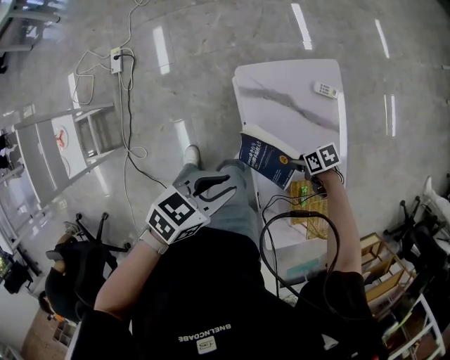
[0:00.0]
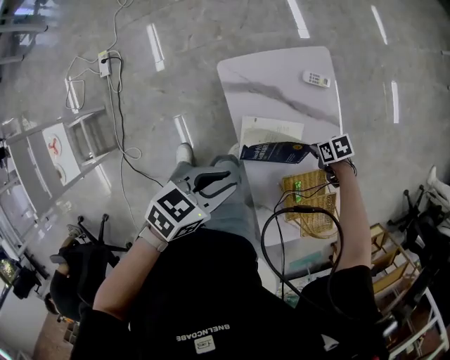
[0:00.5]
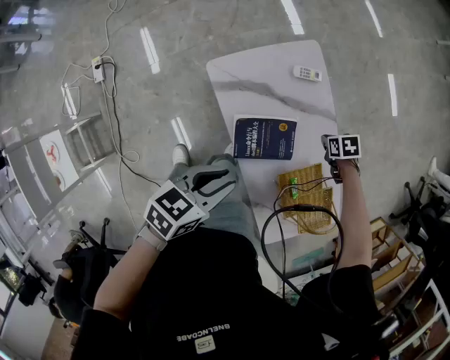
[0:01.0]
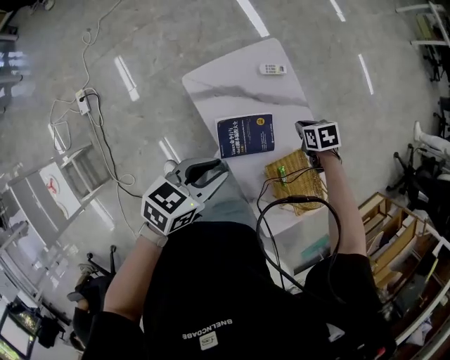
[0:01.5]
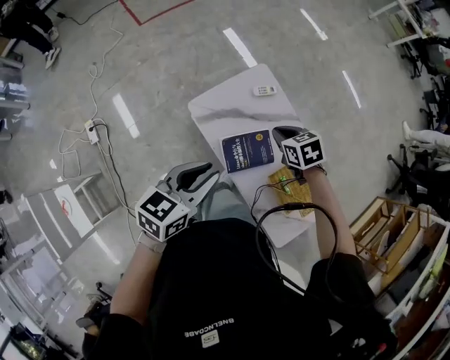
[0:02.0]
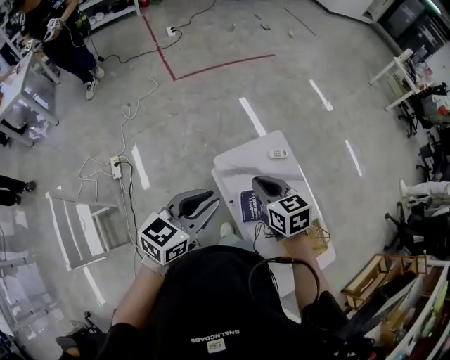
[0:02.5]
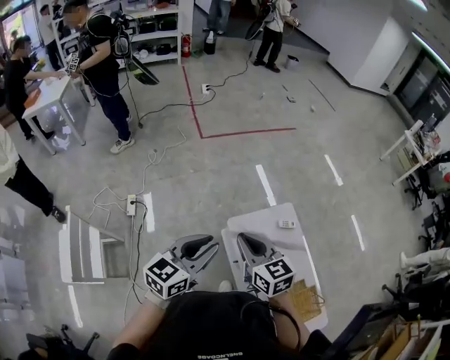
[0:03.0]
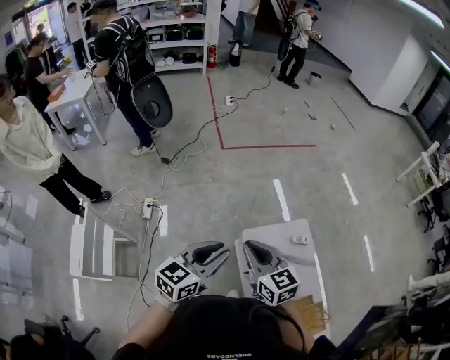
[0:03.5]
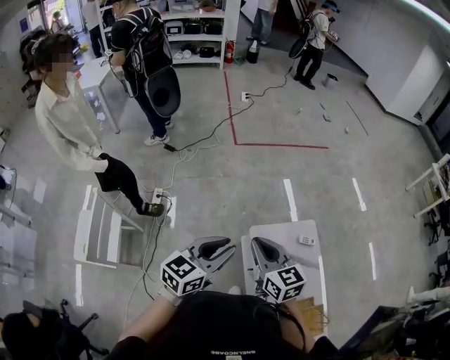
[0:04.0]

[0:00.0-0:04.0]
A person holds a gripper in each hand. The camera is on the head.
0:00.0 to 0:02.0: The left gripper is displaced upward by about 15 cm. Meanwhile the right gripper shifts some 25 cm upward, turns by about 40 degrees, and closes its fingers.
0:02.0 to 0:04.0: The left gripper is displaced to the left and upward by approximately 20 cm, and changes its angle by some 30 degrees. Meanwhile the right gripper goes about 40 cm to the left and upward, and tips its fingers upward by roughly 40 degrees.

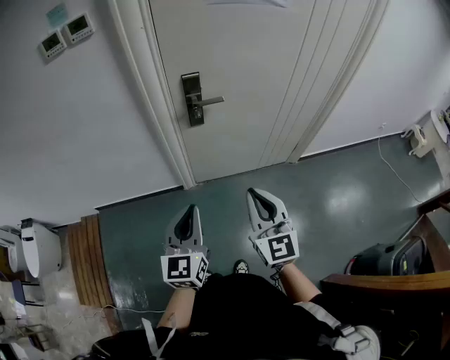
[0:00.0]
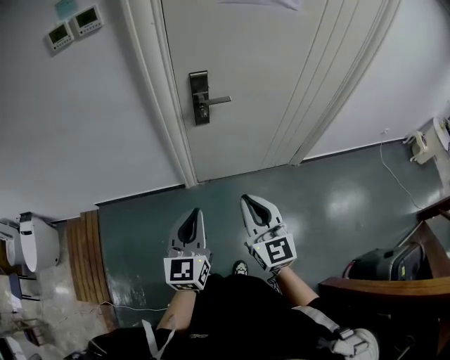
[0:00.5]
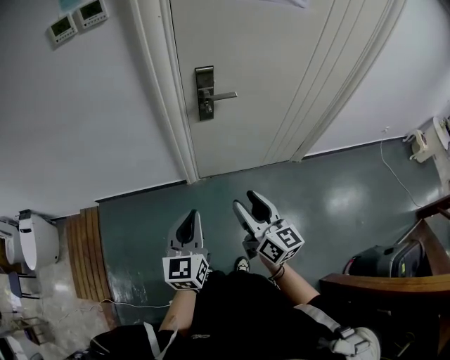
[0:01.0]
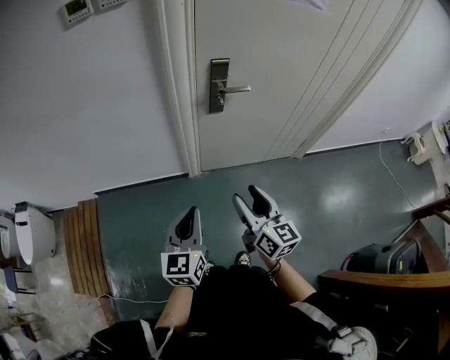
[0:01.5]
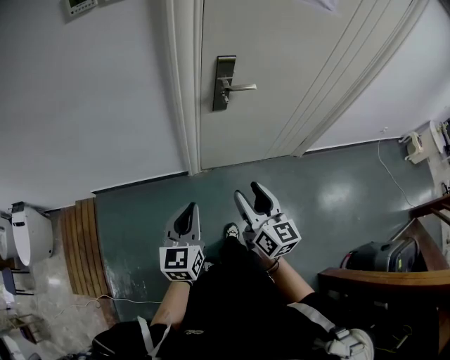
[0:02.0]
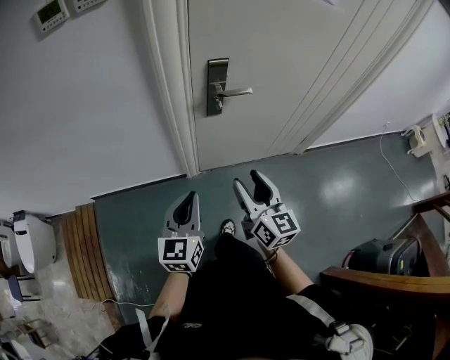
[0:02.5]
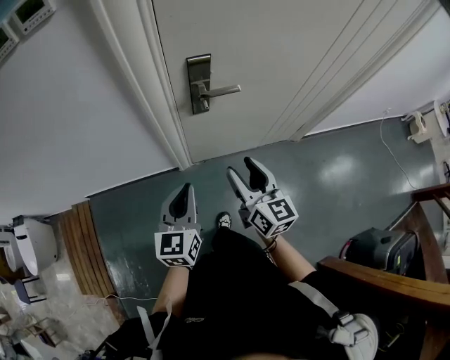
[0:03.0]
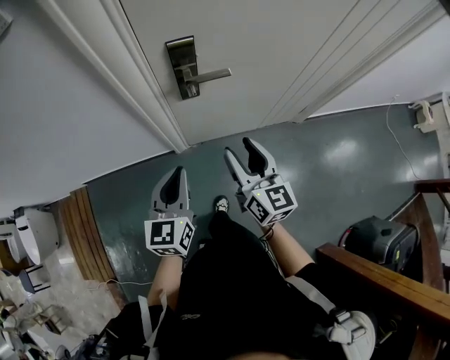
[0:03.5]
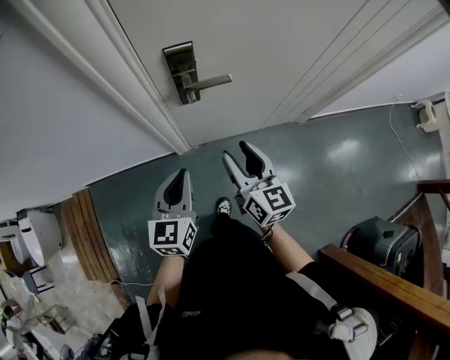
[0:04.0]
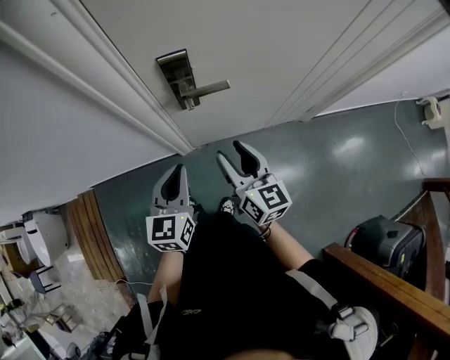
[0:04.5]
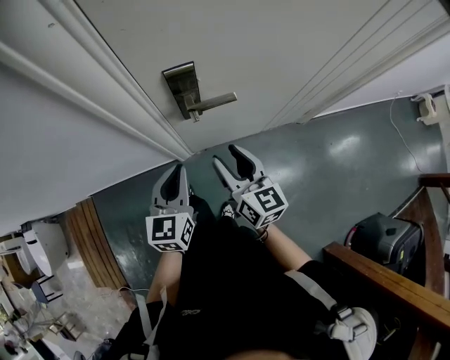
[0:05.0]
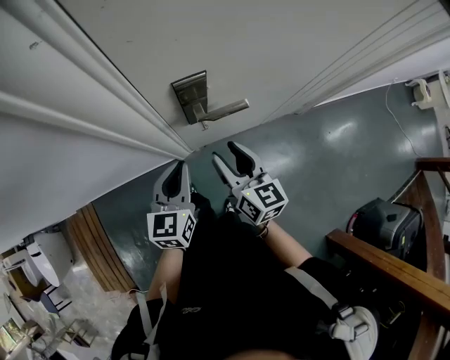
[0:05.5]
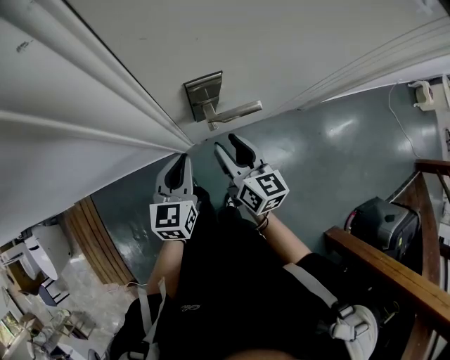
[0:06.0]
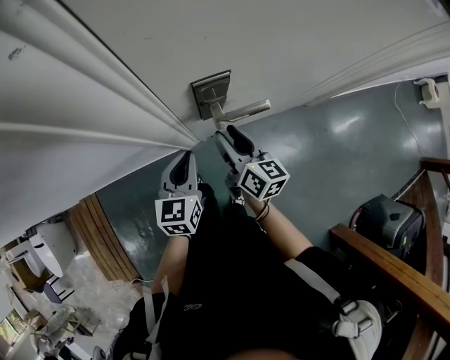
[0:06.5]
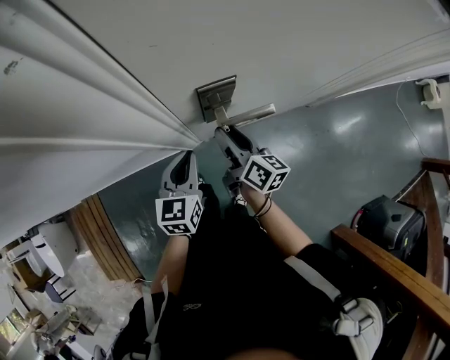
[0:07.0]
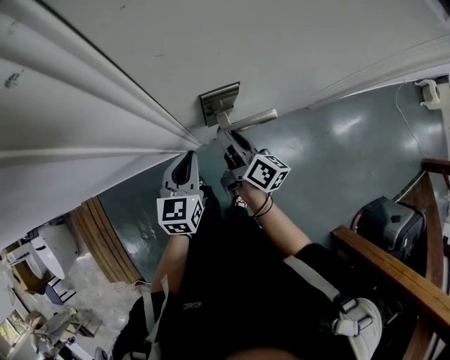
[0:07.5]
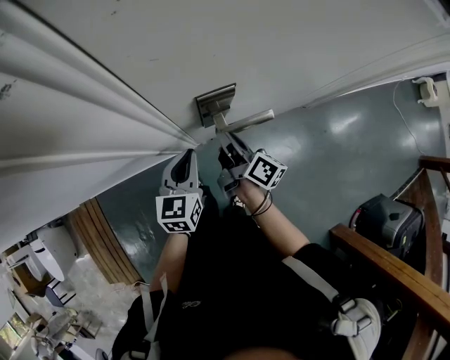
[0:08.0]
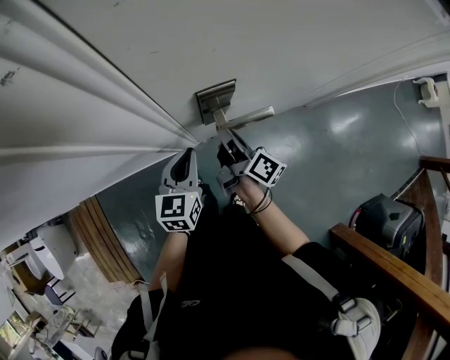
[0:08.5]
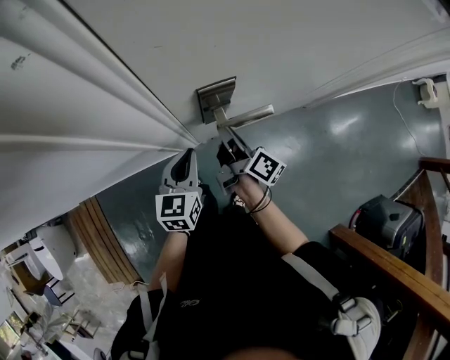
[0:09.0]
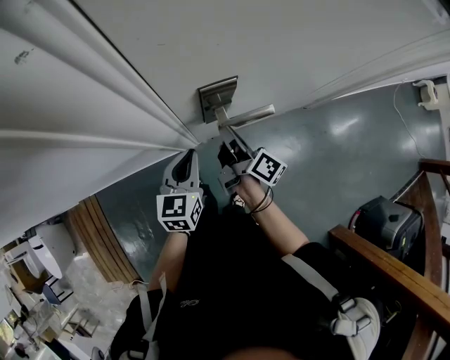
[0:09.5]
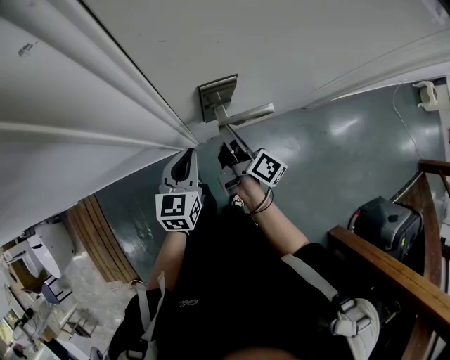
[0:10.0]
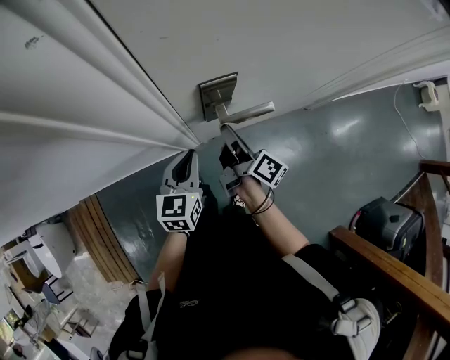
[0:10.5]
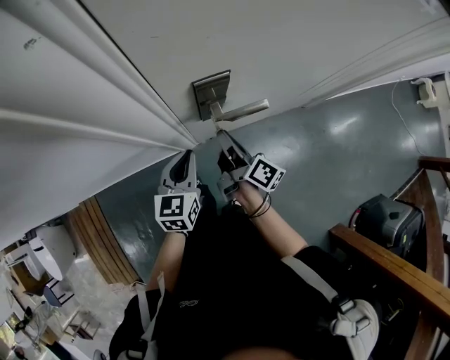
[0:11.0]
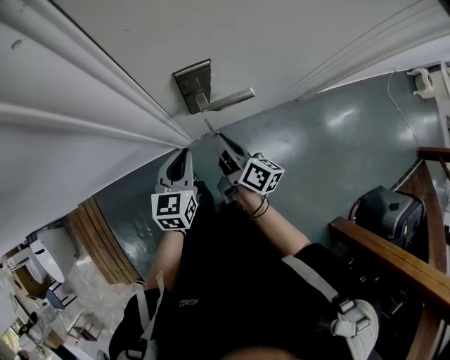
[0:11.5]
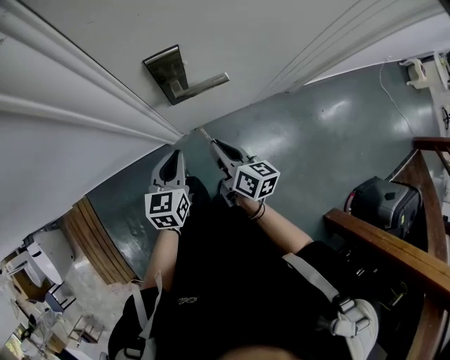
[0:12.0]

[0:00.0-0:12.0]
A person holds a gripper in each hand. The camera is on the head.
0:00.0 to 0:02.0: Both grippers move to the left and downward, roughly 15 cm. The right gripper changes its angle by some 30 degrees, and opens its fingers.
0:02.0 to 0:04.0: The grippers both shift forward and to the right by roughly 25 cm.
0:04.0 to 0:06.0: The left gripper shifts some 15 cm forward, while the right gripper is displaced forward and to the left by roughly 15 cm.
0:06.0 to 0:08.0: The right gripper is displaced forward by roughly 5 cm, rolls clockwise, seen from behind, by some 40 degrees, and closes.
0:08.0 to 0:10.0: The grippers move only a little.
0:10.0 to 0:12.0: The left gripper is displaced backward by some 10 cm. The right gripper travels backward by some 15 cm, and changes its angle by about 30 degrees.

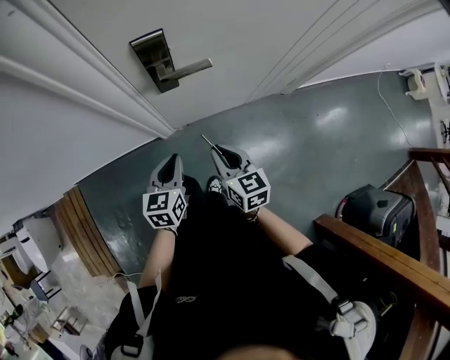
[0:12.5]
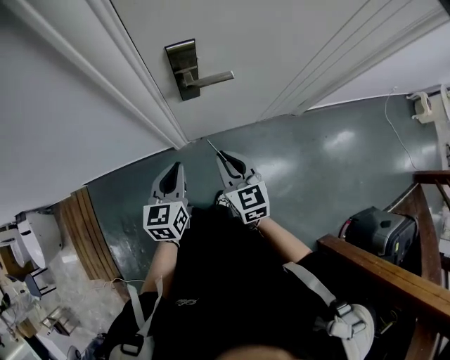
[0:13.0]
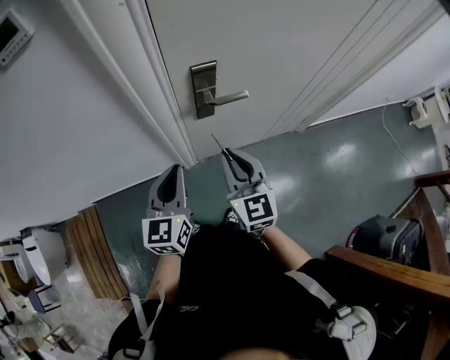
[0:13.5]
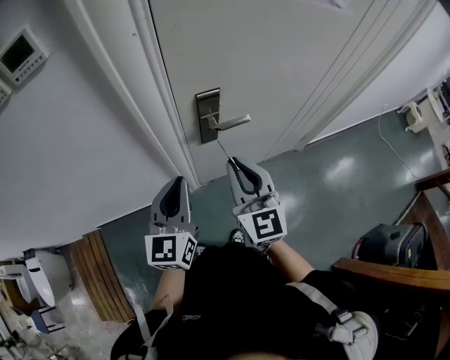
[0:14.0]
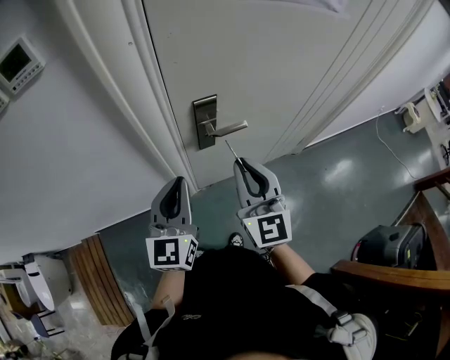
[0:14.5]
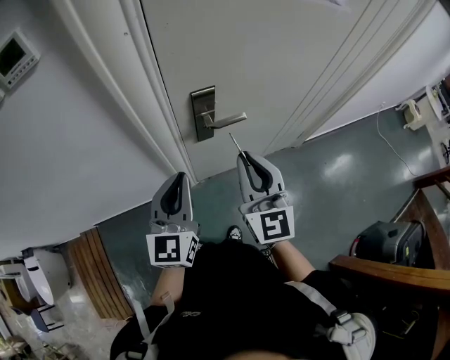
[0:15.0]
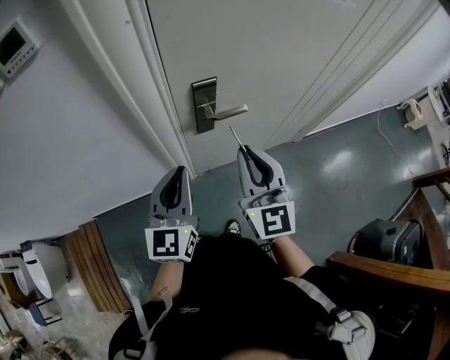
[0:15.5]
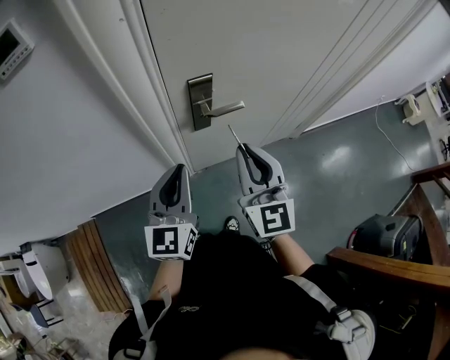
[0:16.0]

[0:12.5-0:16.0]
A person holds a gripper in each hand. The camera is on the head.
0:12.5 to 0:14.5: The grippers both shift upward by roughly 25 cm. The left gripper swivels approximately 30 degrees, while the right gripper turns by about 40 degrees.
0:14.5 to 0:16.0: There are only small adjustments of the grippers.

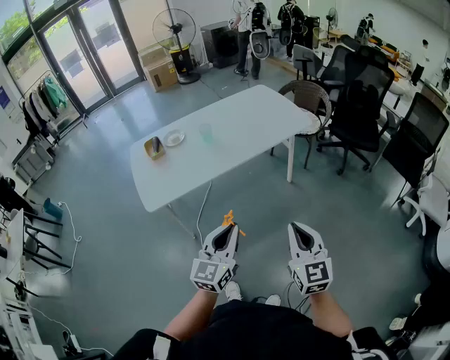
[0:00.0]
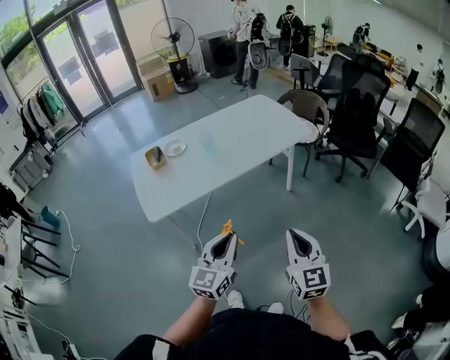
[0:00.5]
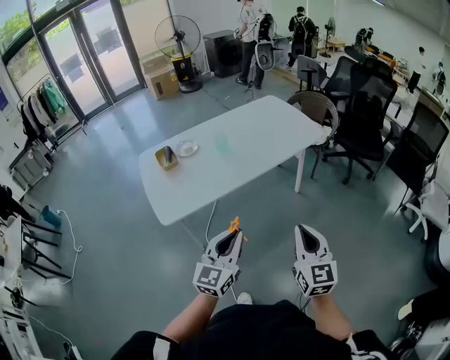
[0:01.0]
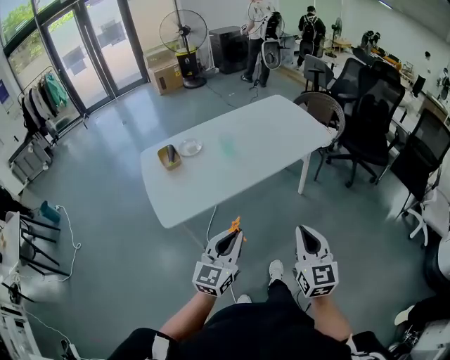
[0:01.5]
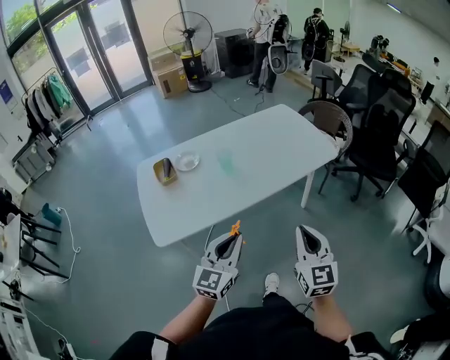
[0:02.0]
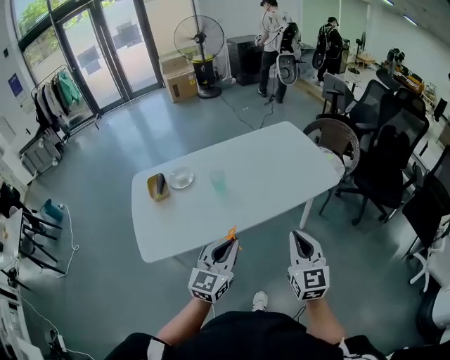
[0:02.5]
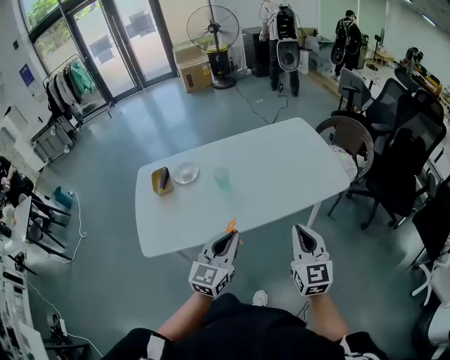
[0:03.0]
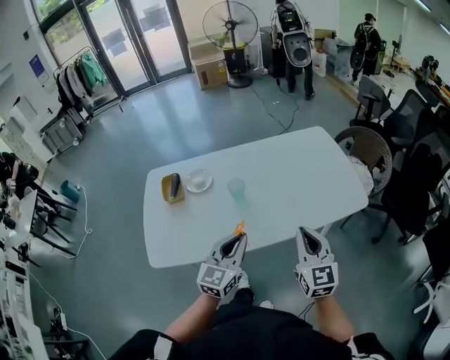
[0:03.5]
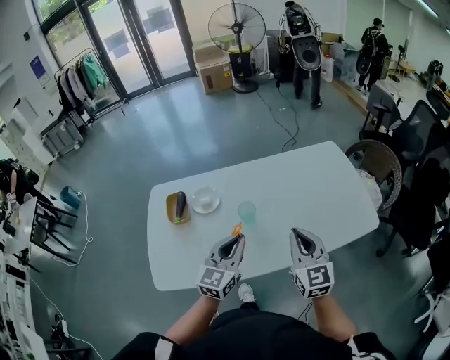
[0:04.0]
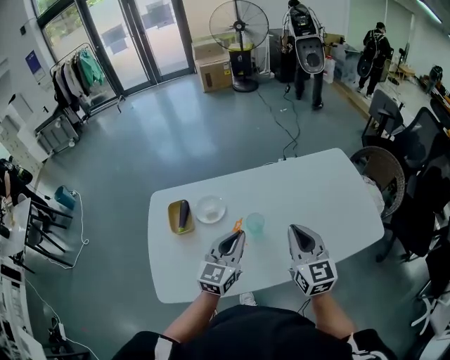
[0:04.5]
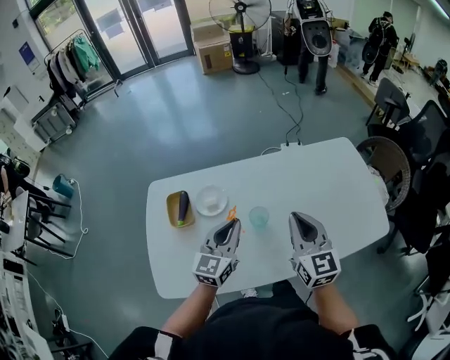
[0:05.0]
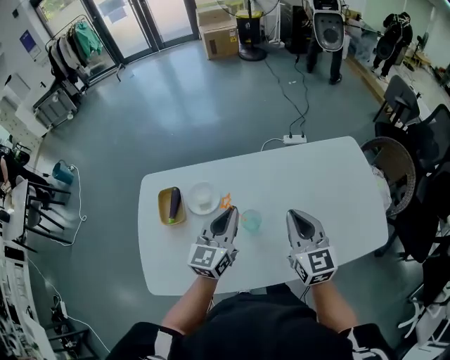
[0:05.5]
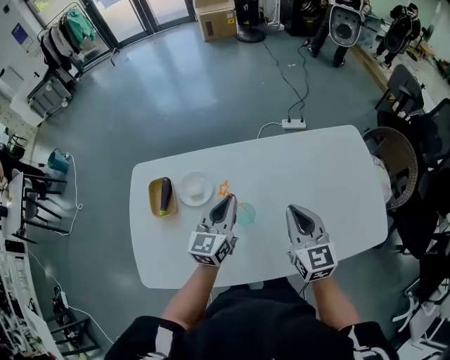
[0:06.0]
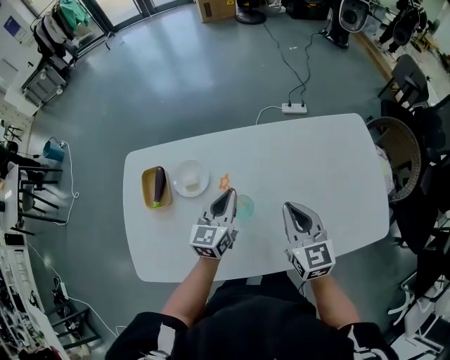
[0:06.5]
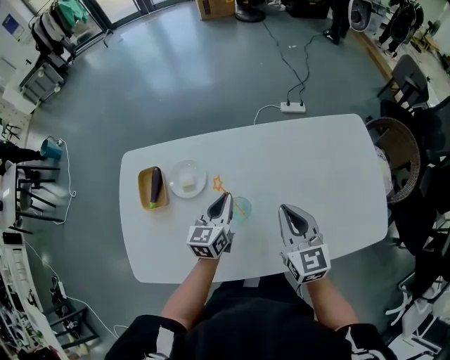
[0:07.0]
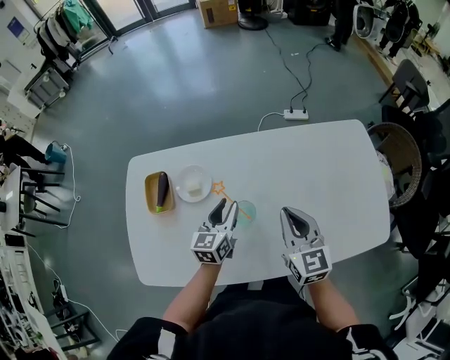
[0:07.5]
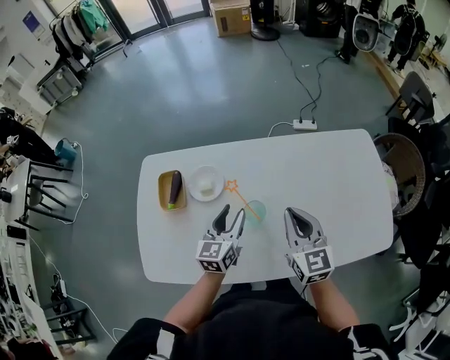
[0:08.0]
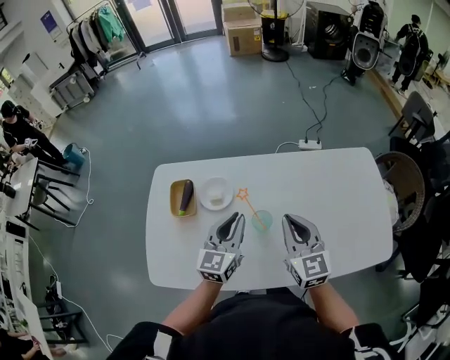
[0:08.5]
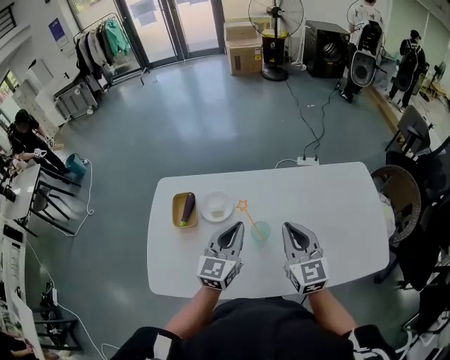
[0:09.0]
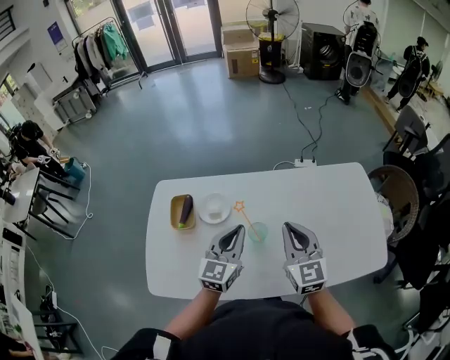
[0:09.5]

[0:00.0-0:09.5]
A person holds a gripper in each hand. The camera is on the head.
0:00.0 to 0:02.0: Both grippers travel together forward and to the left, approximately 20 cm.
0:02.0 to 0:04.0: Both grippers travel together forward, some 35 cm.
0:04.0 to 0:05.5: The grippers both shift forward by roughly 15 cm.
0:05.5 to 0:07.5: The left gripper goes some 15 cm downward, and opens. The right gripper travels downward by roughly 5 cm.
0:07.5 to 0:09.5: The left gripper moves upward and backward, some 15 cm, swivels about 20 degrees, and closes its fingers; the right gripper goes some 10 cm upward.
